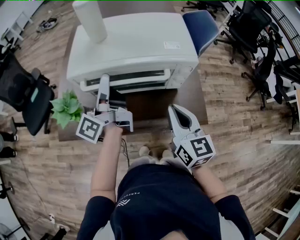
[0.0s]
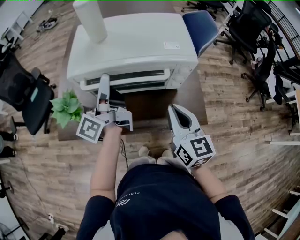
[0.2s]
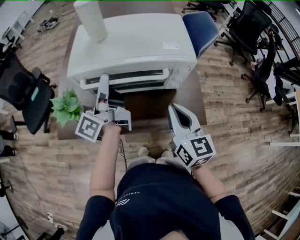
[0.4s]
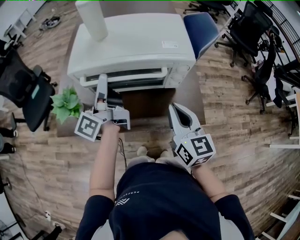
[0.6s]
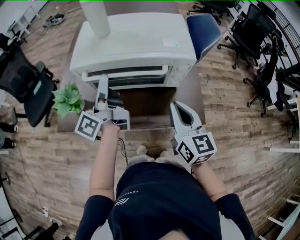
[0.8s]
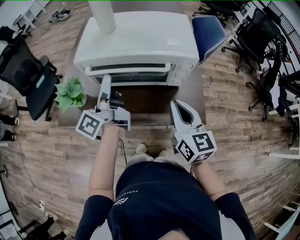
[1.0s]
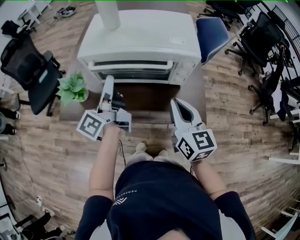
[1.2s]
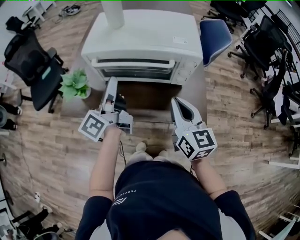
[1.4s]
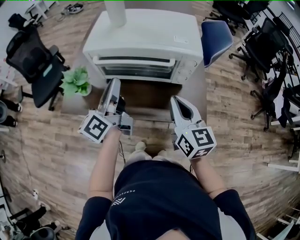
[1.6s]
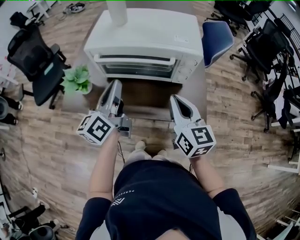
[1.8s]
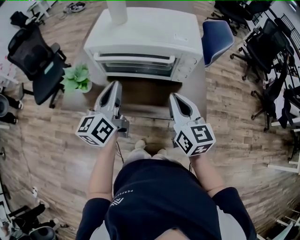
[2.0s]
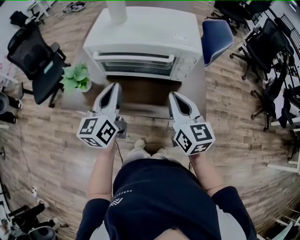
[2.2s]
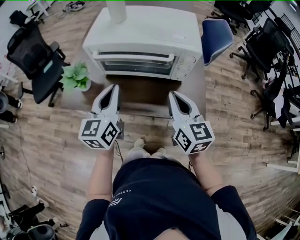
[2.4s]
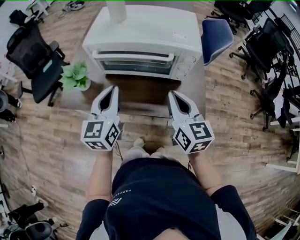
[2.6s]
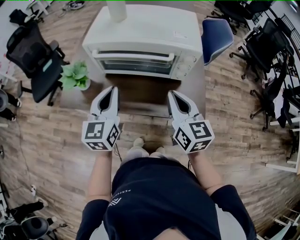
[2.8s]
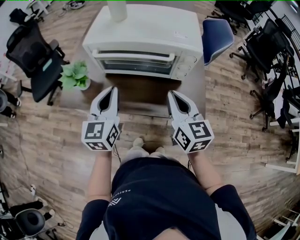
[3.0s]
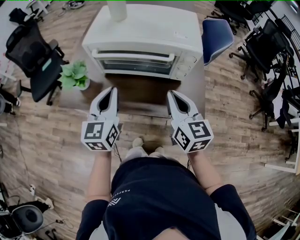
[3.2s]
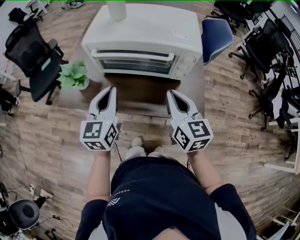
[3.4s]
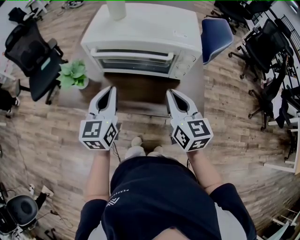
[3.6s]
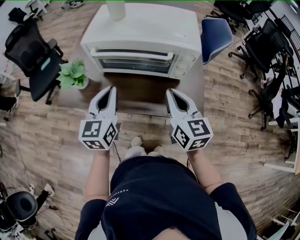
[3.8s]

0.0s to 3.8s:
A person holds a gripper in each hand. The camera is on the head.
0.0s to 1.2s: The left gripper heads backward, covering about 5 cm.
1.2s to 2.6s: The left gripper moves backward, approximately 5 cm, rolls clockwise, seen from behind, by approximately 60 degrees, and closes.
2.6s to 3.8s: The two grippers keep their place.

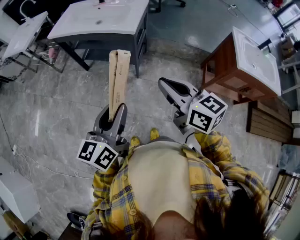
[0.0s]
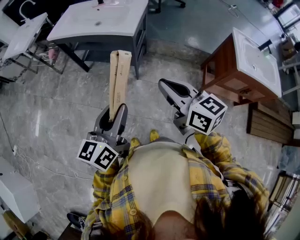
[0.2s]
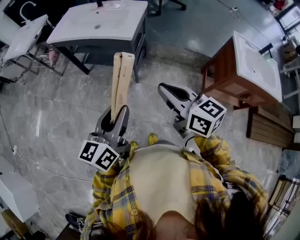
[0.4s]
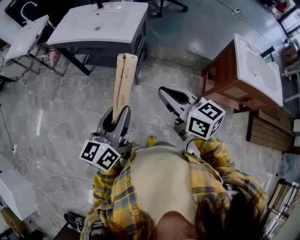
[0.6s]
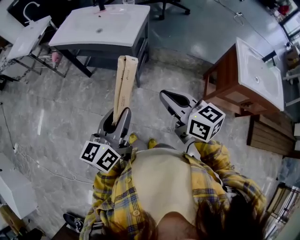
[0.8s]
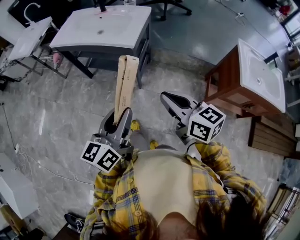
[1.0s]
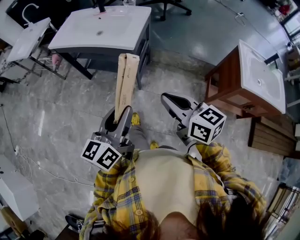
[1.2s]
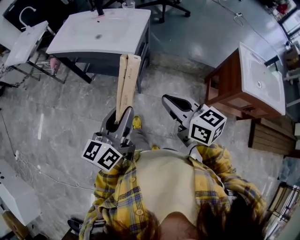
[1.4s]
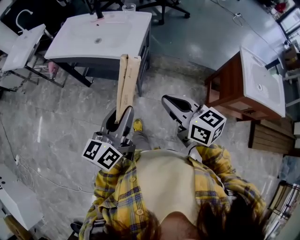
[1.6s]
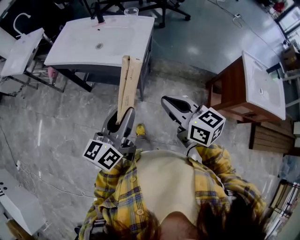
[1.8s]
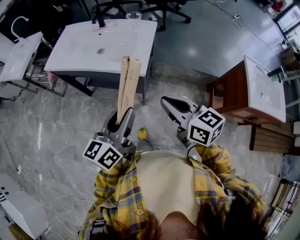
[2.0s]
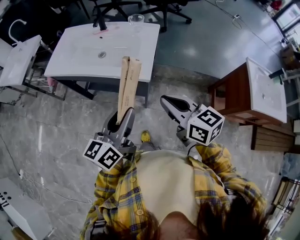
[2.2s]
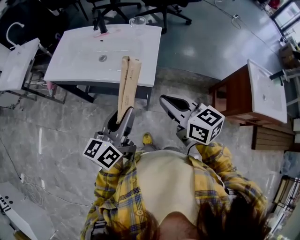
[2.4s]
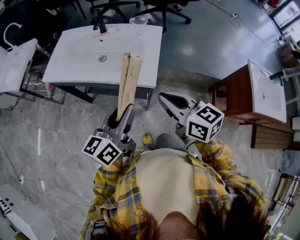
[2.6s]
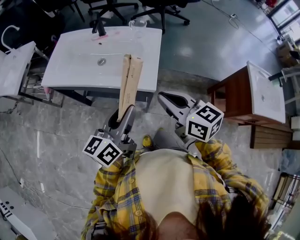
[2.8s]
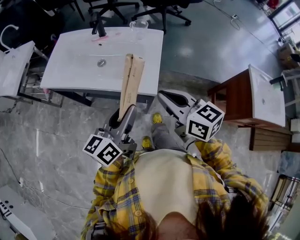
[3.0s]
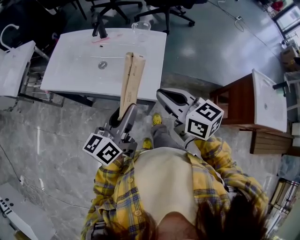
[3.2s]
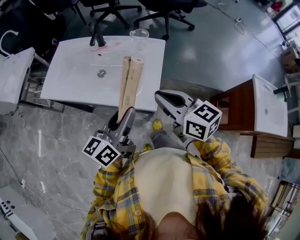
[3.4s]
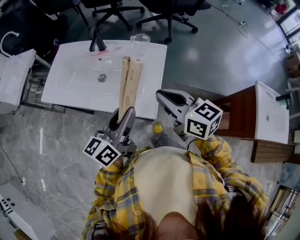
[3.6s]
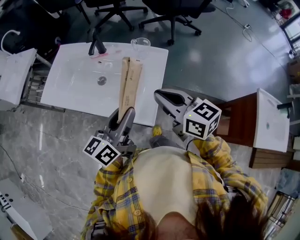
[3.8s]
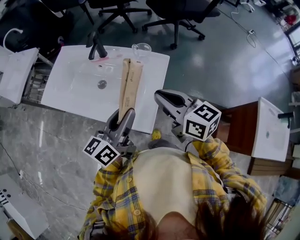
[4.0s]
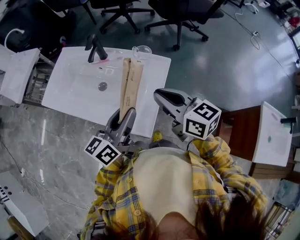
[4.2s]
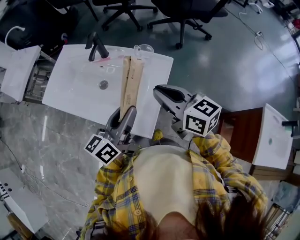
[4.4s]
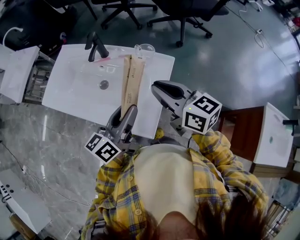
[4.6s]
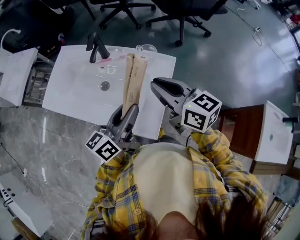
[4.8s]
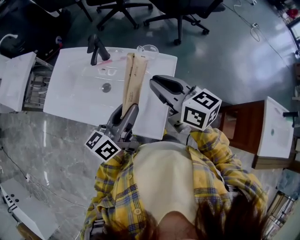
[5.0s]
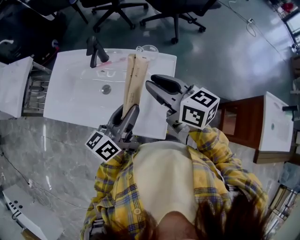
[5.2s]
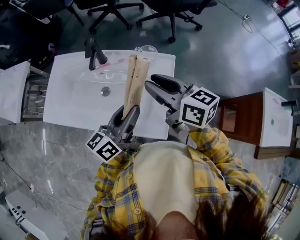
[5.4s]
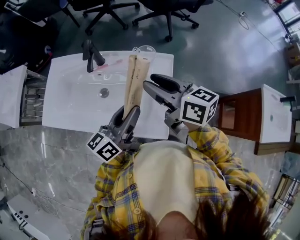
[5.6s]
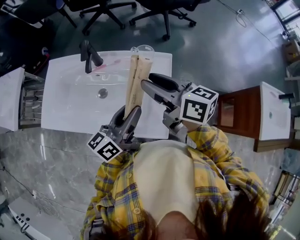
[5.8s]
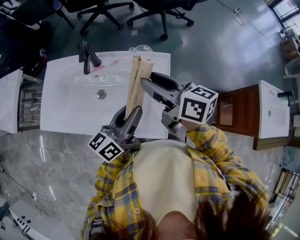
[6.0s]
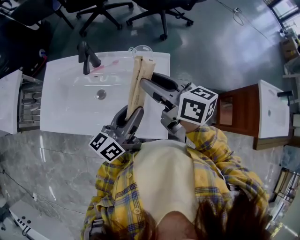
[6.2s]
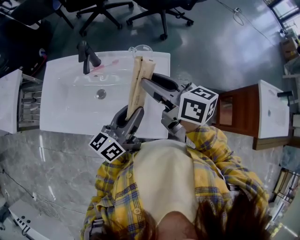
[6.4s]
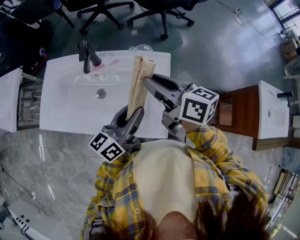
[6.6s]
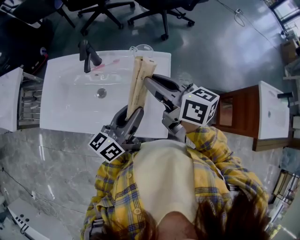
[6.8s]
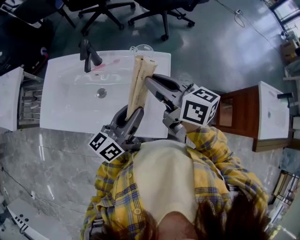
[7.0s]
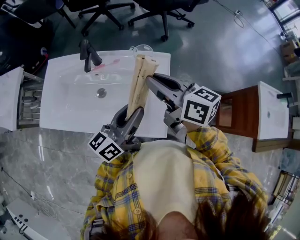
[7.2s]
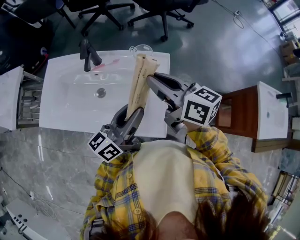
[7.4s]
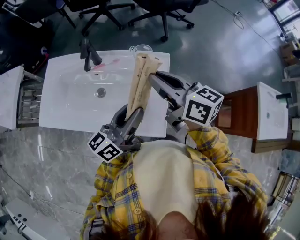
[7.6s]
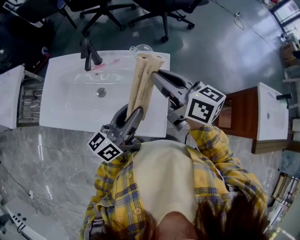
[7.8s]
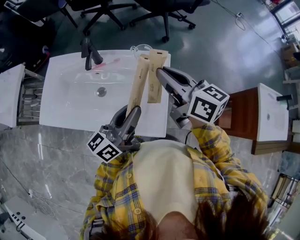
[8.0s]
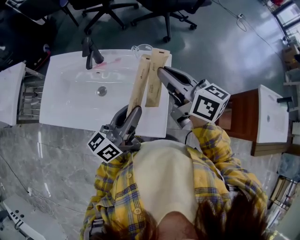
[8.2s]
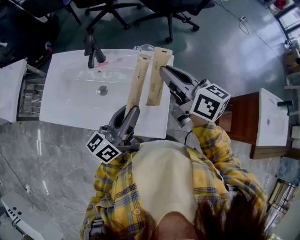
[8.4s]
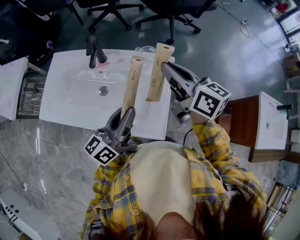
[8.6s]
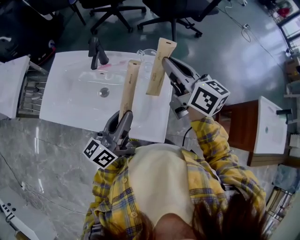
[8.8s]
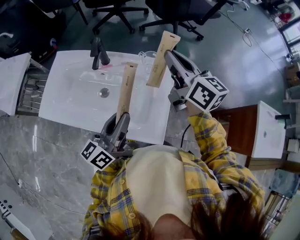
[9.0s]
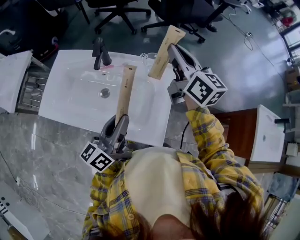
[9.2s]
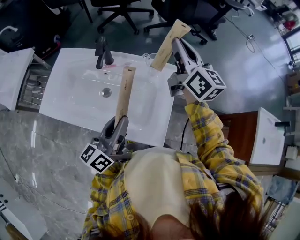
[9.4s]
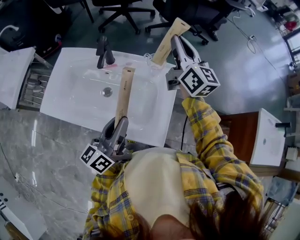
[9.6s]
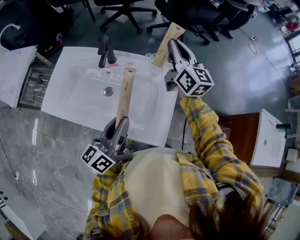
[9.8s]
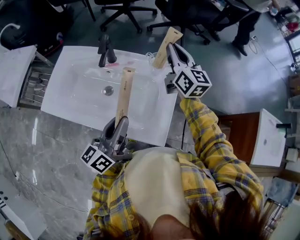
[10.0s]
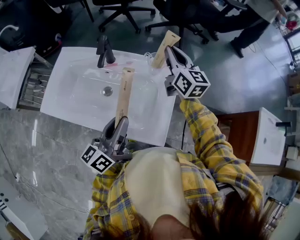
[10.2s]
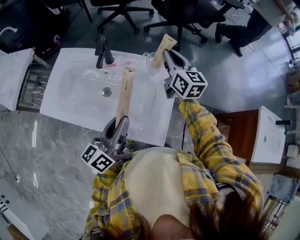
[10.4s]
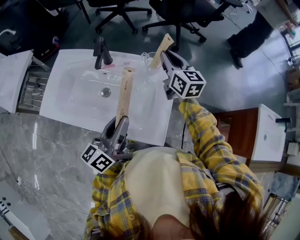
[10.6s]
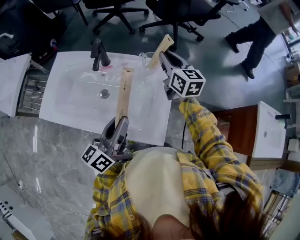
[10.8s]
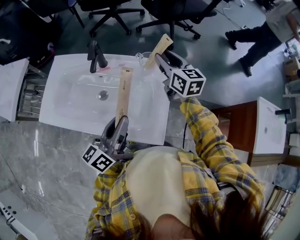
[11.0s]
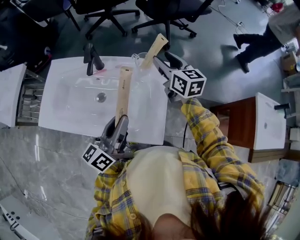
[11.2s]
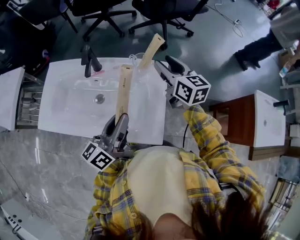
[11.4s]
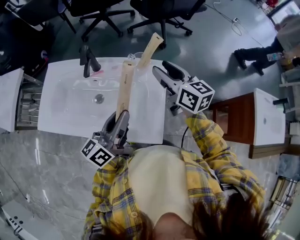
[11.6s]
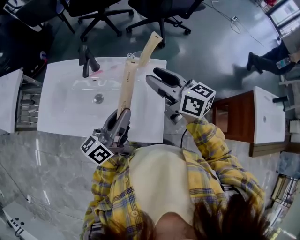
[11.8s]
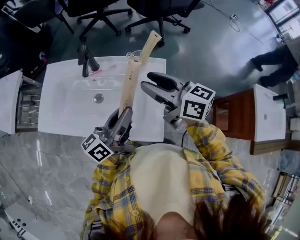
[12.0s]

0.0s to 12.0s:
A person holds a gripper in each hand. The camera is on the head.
0.0s to 1.6s: Both grippers move forward, approximately 15 cm.
1.6s to 3.0s: The right gripper shifts approximately 25 cm forward and to the left; the left gripper moves forward, some 20 cm.
3.0s to 4.4s: The left gripper travels forward and to the right by approximately 20 cm. The right gripper goes roughly 20 cm forward.
4.4s to 6.0s: The right gripper travels forward and to the left by about 10 cm, rotates roughly 20 degrees, and opens its fingers.
6.0s to 7.6s: The right gripper closes.
7.6s to 9.0s: The right gripper goes about 10 cm forward.
9.0s to 10.4s: The right gripper is displaced downward and forward by approximately 10 cm.
10.4s to 12.0s: The left gripper moves some 5 cm. Meanwhile the right gripper is displaced backward by some 15 cm, rotates approximately 30 degrees, and opens up.

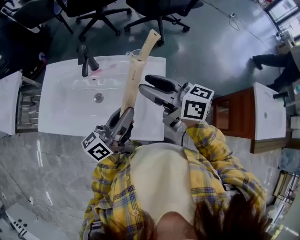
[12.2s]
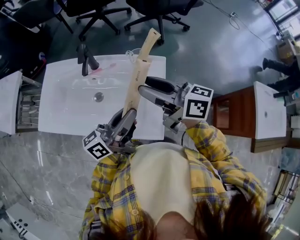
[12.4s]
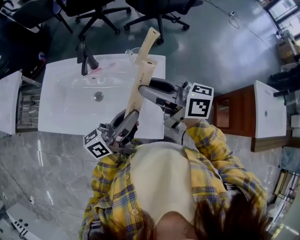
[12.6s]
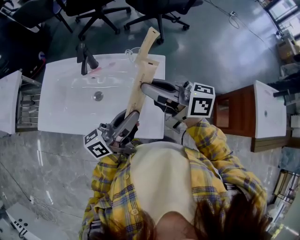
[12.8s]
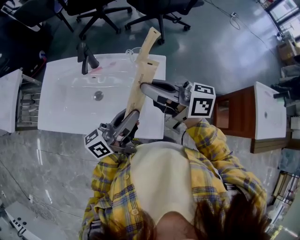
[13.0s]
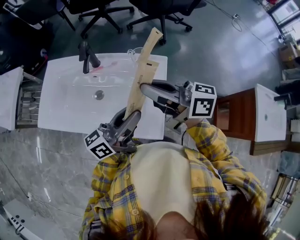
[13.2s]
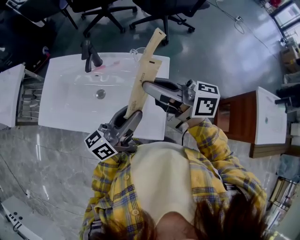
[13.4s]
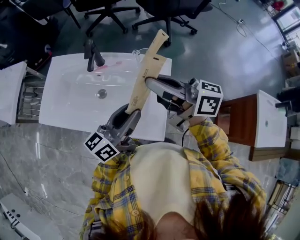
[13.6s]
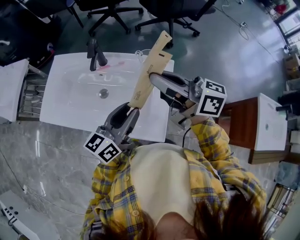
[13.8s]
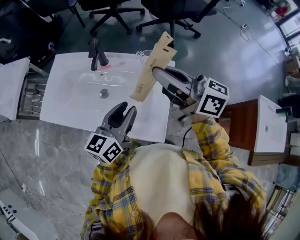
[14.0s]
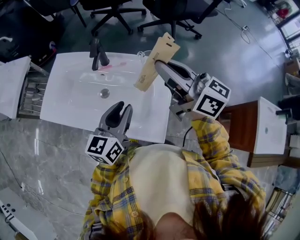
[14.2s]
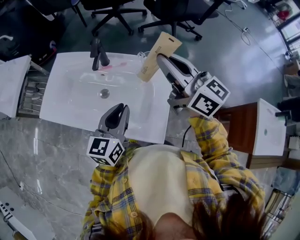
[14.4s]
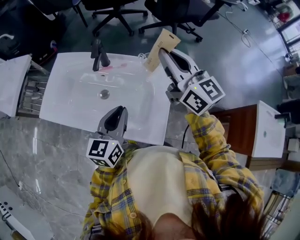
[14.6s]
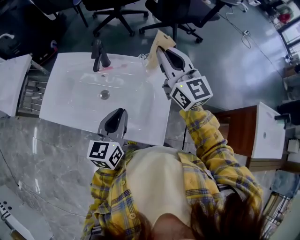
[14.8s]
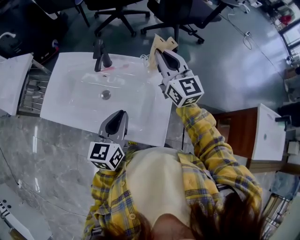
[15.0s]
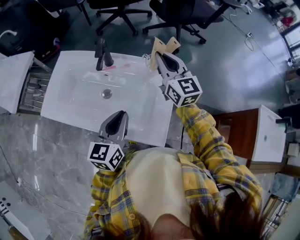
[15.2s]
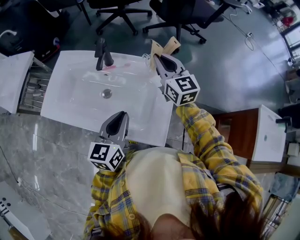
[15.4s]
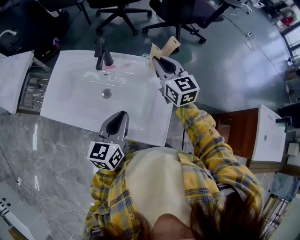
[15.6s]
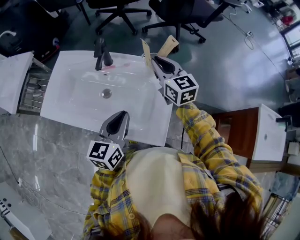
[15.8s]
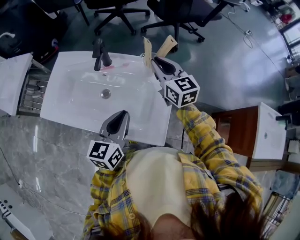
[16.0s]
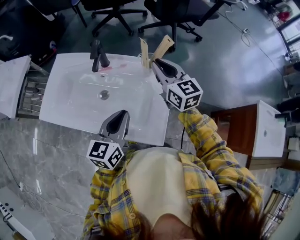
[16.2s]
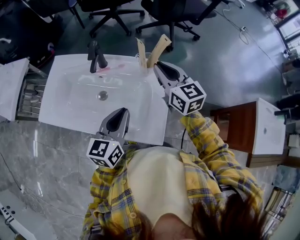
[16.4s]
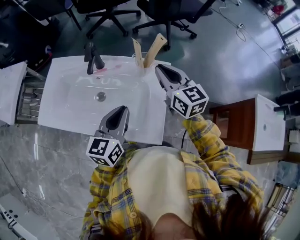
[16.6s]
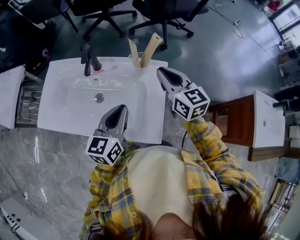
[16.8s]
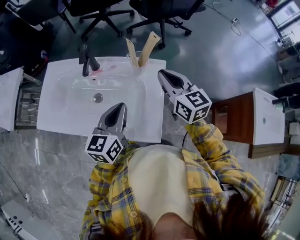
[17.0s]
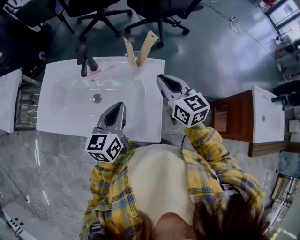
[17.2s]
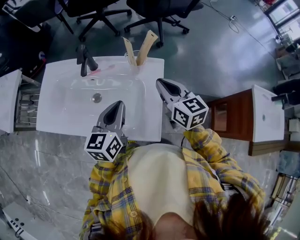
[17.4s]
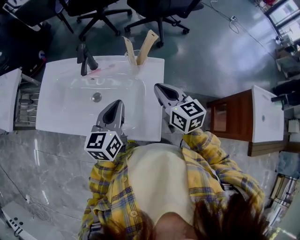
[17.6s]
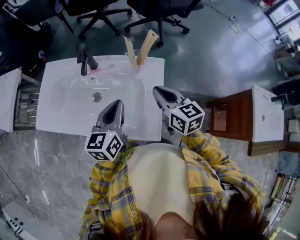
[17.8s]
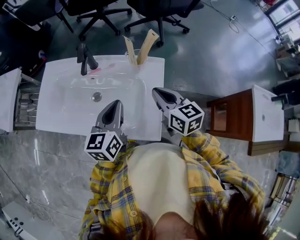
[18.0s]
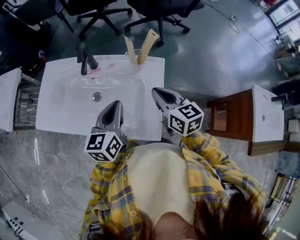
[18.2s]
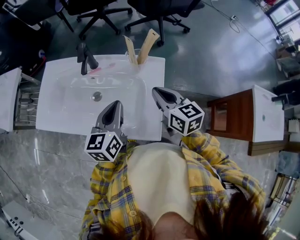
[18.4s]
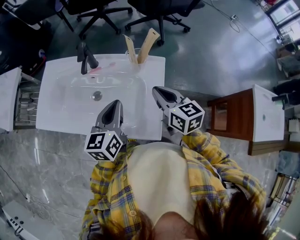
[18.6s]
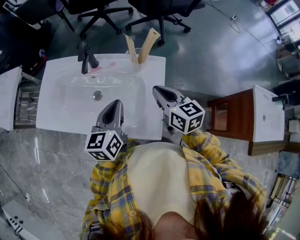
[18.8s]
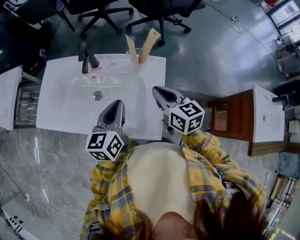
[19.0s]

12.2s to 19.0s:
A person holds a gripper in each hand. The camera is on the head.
12.2s to 13.6s: The right gripper closes its fingers.
13.6s to 15.0s: The left gripper shifts by roughly 5 cm, swivels approximately 40 degrees, and closes, while the right gripper heads forward, covering roughly 15 cm, and rolls counterclockwise, seen from behind, by roughly 50 degrees.
15.0s to 16.2s: The right gripper is displaced downward by approximately 5 cm.
16.2s to 17.6s: The right gripper shifts some 10 cm backward.
17.6s to 19.0s: The grippers stay close to where they were, moving slightly.

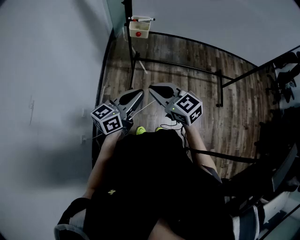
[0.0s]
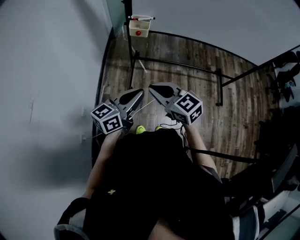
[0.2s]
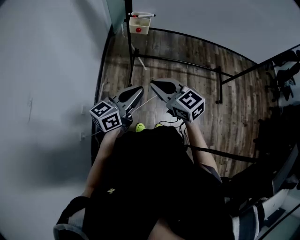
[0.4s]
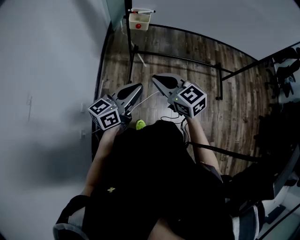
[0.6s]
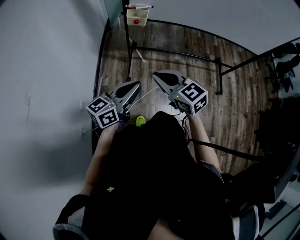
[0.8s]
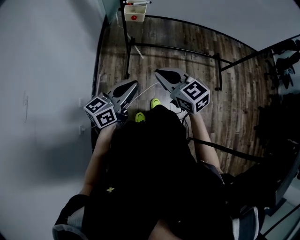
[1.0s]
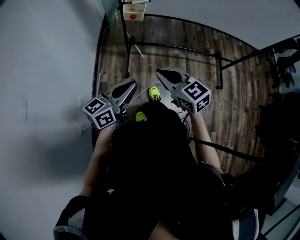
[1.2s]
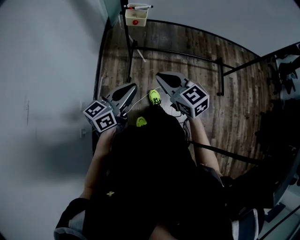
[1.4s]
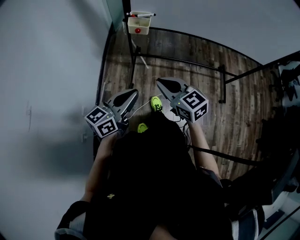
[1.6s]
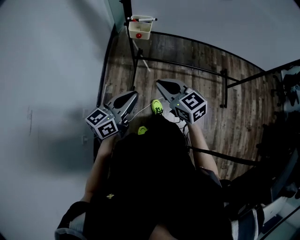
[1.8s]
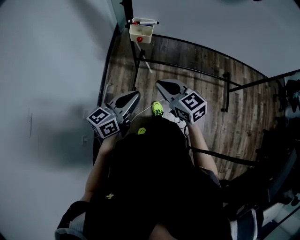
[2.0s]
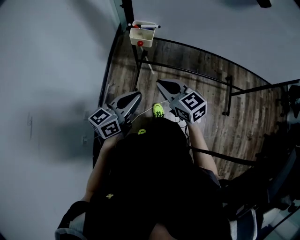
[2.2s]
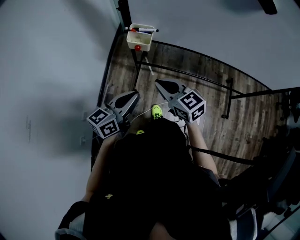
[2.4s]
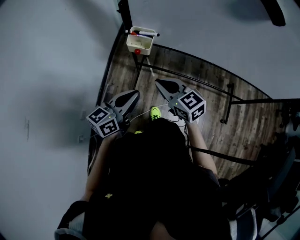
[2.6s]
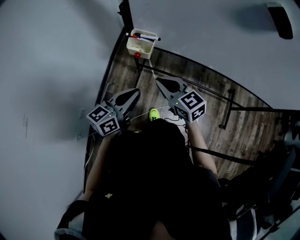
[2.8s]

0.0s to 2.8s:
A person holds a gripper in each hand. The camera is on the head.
0.0s to 1.4s: The grippers stay close to where they were, moving slightly.
1.4s to 2.8s: Both grippers move forward, roughly 20 cm.
